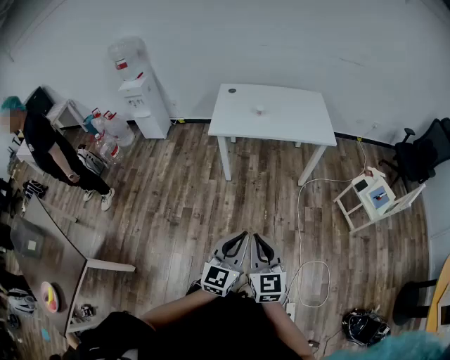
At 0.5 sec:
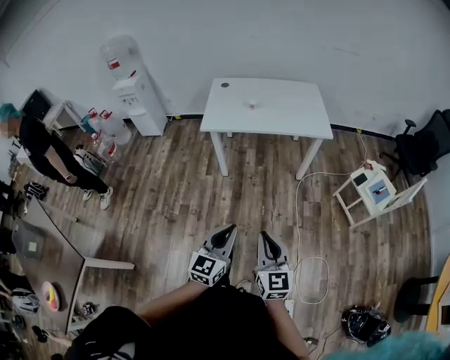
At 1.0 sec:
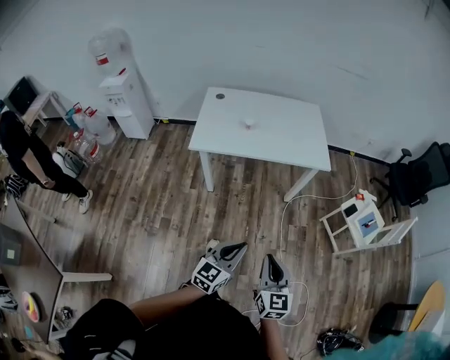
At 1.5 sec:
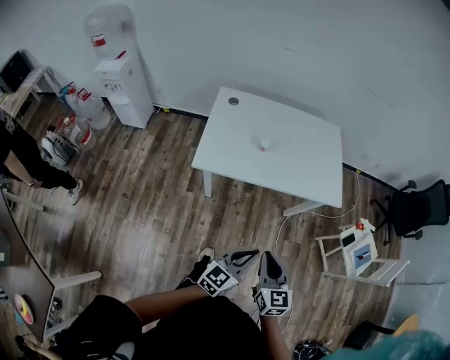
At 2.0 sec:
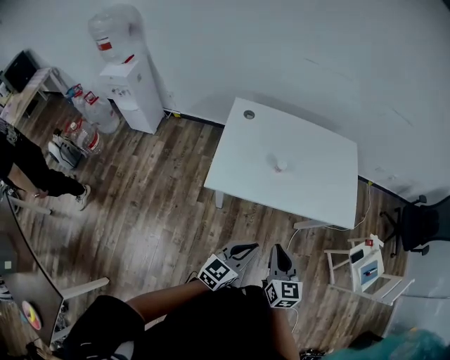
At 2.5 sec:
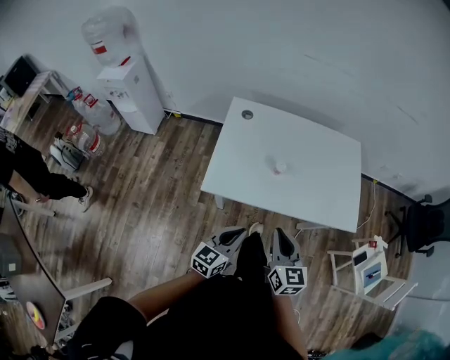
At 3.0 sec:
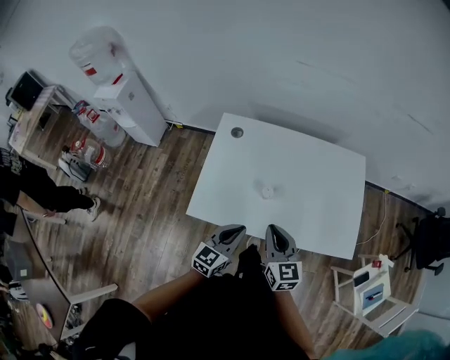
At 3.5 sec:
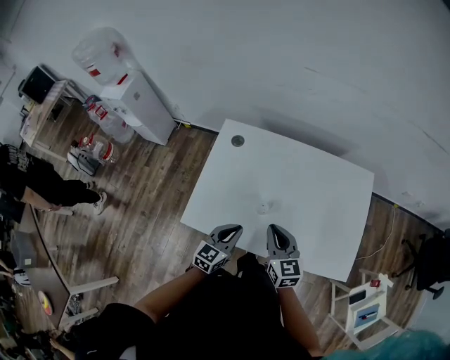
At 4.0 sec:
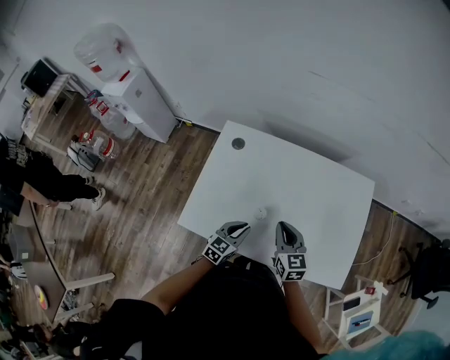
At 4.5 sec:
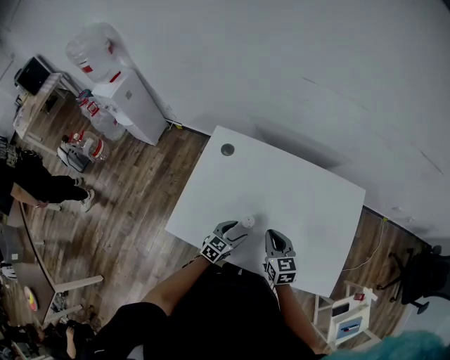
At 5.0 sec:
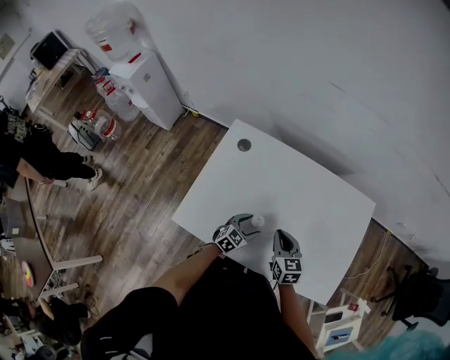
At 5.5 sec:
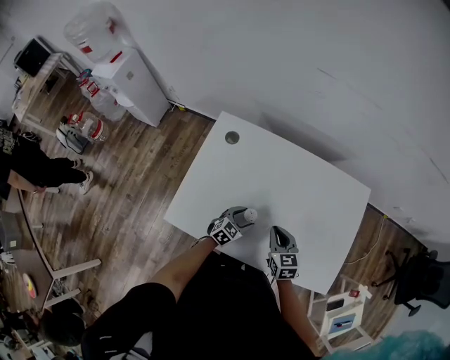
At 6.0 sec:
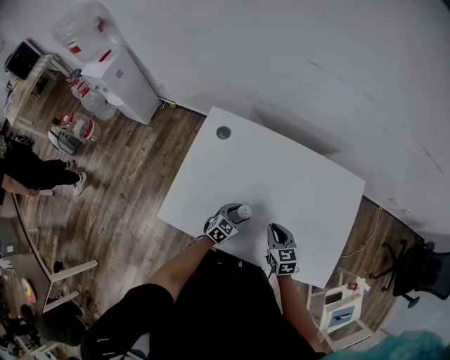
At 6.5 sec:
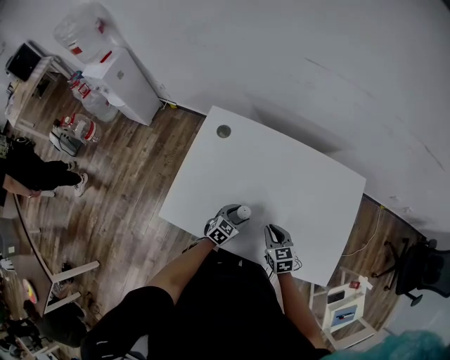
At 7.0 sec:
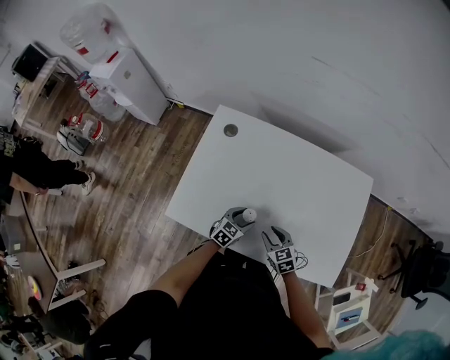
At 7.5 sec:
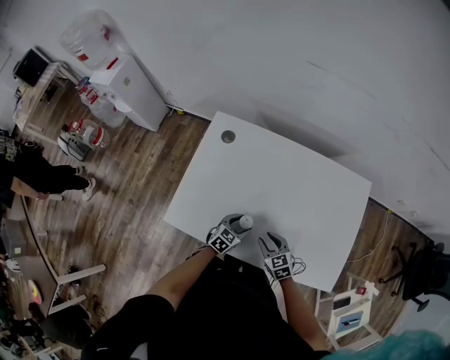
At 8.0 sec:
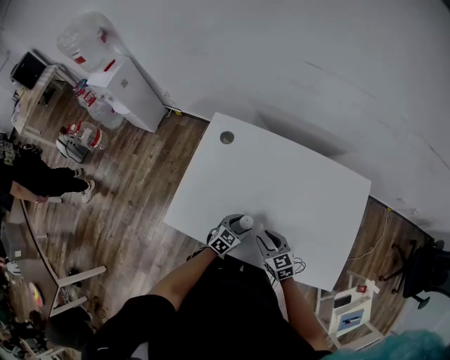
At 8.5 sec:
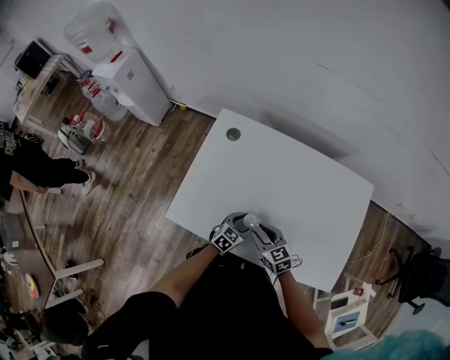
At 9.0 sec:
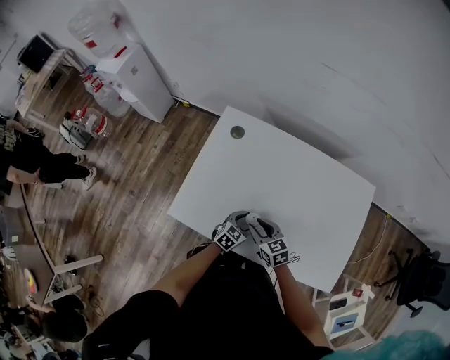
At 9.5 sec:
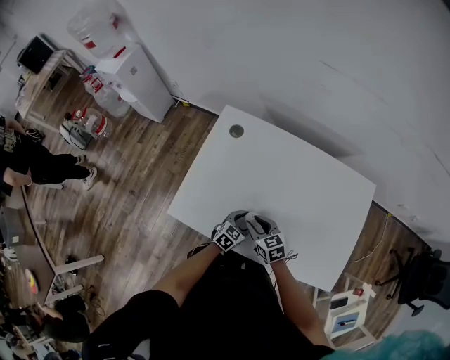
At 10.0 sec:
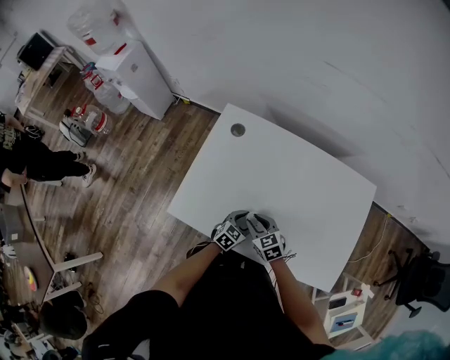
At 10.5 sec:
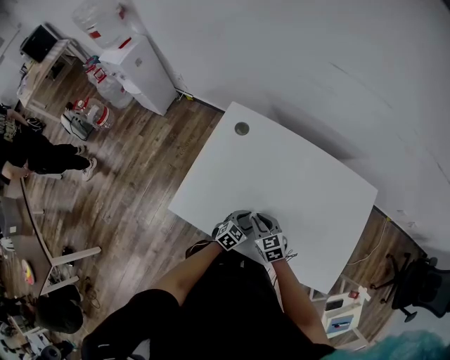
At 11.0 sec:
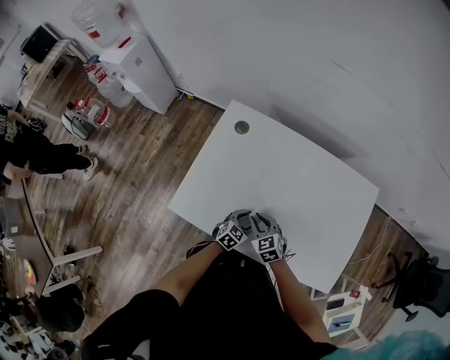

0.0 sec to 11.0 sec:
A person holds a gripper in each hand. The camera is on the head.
0.0 sec to 2.0 sec: The pair of grippers is taken forward, approximately 50 cm. The left gripper swivels approximately 20 degrees.
2.0 sec to 3.5 sec: The grippers both shift forward by about 30 cm. The left gripper rotates some 20 degrees.
3.5 sec to 5.5 sec: The right gripper shifts roughly 15 cm downward and forward. The left gripper moves downward and forward, some 20 cm, rotates about 20 degrees, and opens its fingers.
5.5 sec to 7.5 sec: The right gripper shifts roughly 10 cm downward and backward, and opens.
7.5 sec to 9.0 sec: The right gripper is displaced to the left by some 10 cm.
9.0 sec to 11.0 sec: The grippers stay close to where they were, moving slightly.

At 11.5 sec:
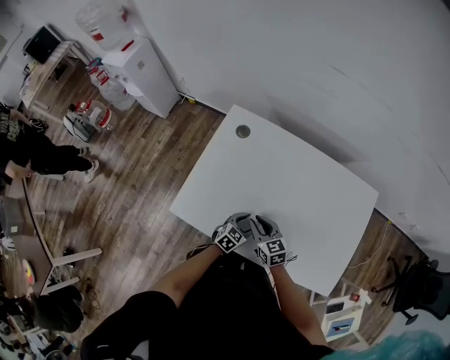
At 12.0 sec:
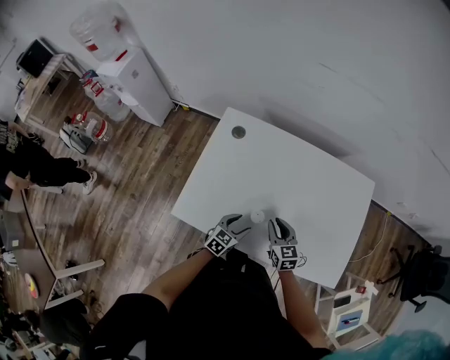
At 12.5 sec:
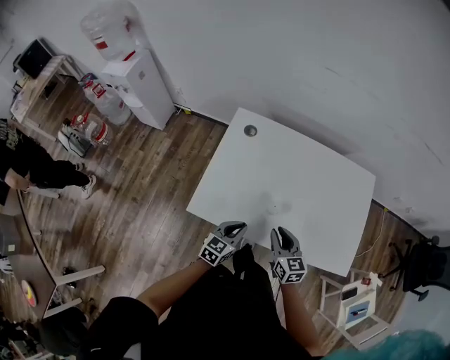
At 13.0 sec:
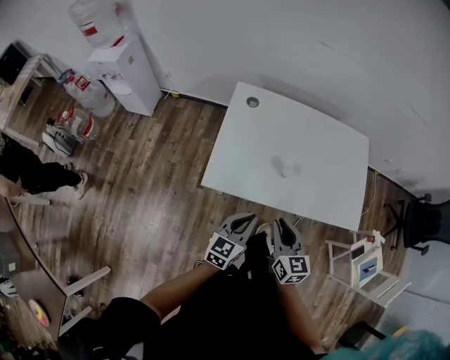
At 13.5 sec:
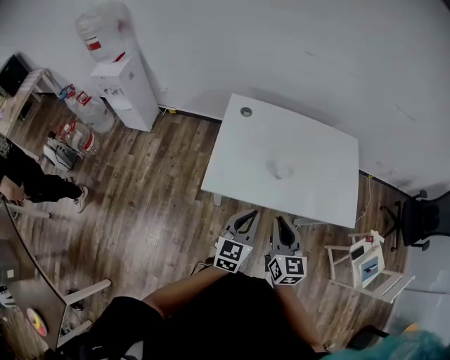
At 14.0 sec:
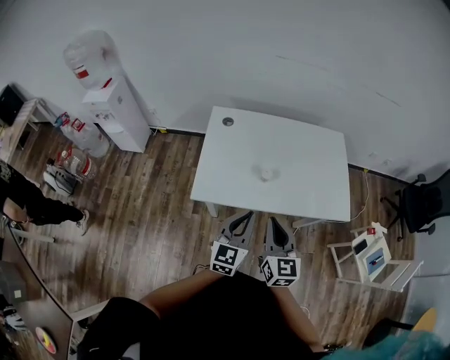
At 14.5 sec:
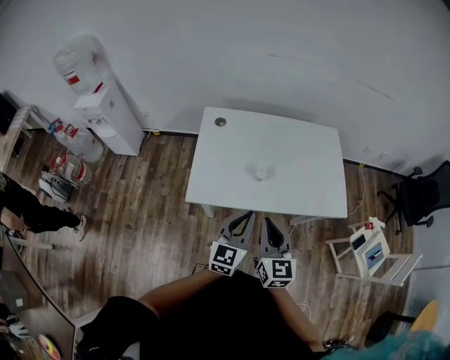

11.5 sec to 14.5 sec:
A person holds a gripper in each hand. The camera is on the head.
11.5 sec to 13.0 sec: The right gripper heads backward and upward, covering some 30 cm, and changes its angle by approximately 30 degrees, while the left gripper goes approximately 35 cm upward, backward and to the left, changes its angle by some 30 degrees, and closes up.
13.0 sec to 14.5 sec: The left gripper travels upward and to the right by some 10 cm. The right gripper heads upward, covering some 10 cm.

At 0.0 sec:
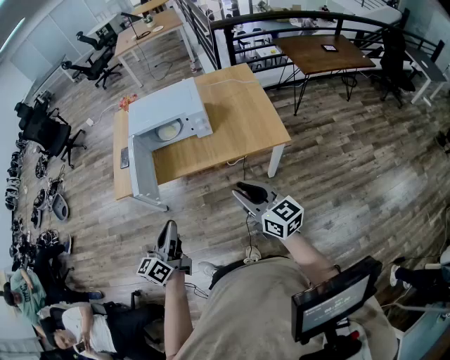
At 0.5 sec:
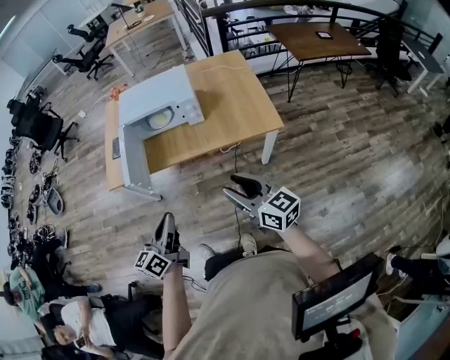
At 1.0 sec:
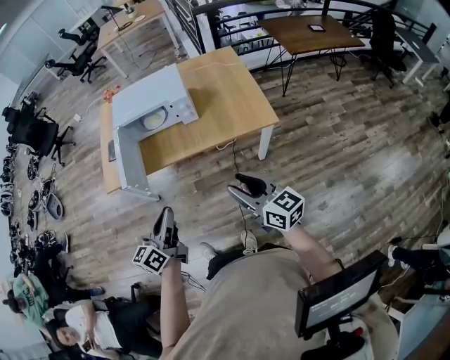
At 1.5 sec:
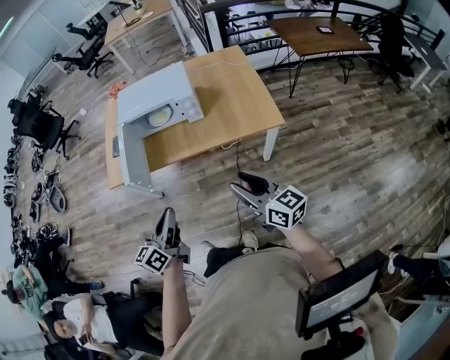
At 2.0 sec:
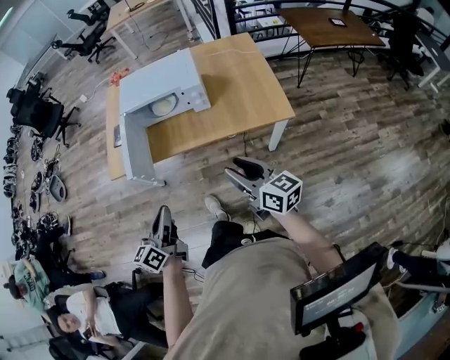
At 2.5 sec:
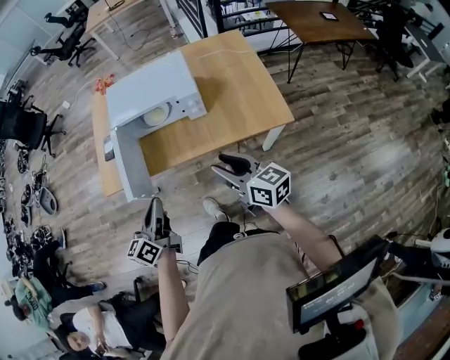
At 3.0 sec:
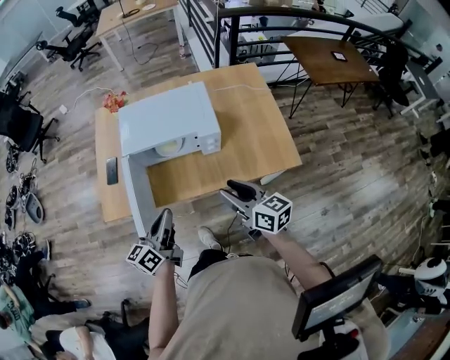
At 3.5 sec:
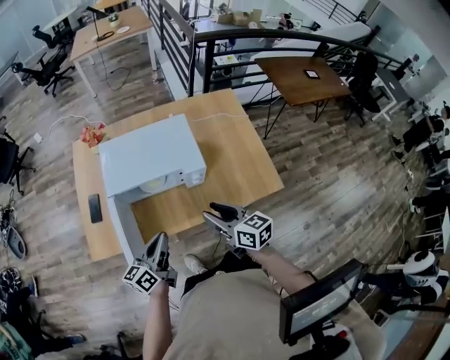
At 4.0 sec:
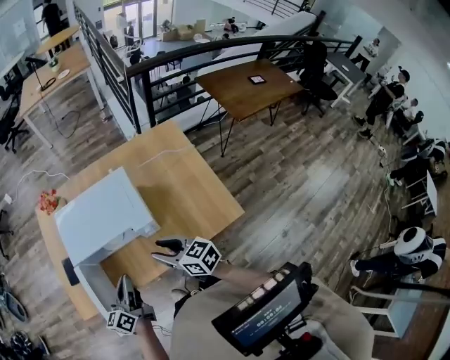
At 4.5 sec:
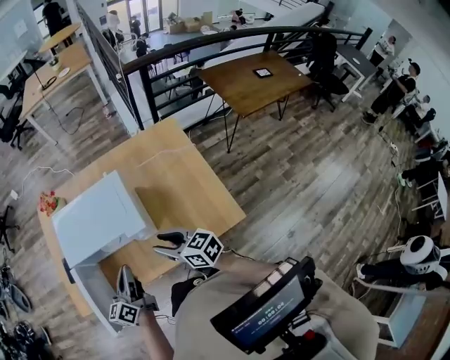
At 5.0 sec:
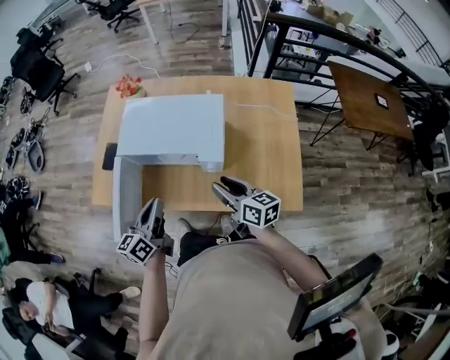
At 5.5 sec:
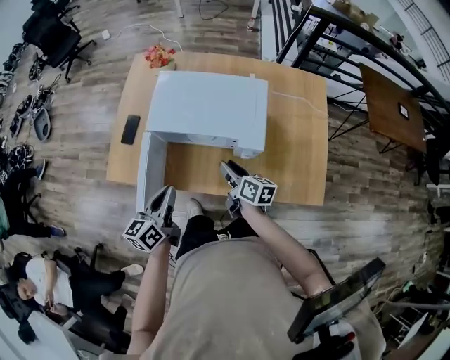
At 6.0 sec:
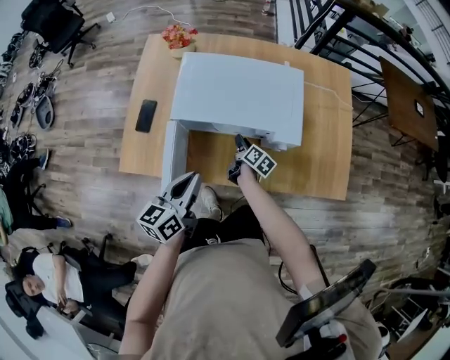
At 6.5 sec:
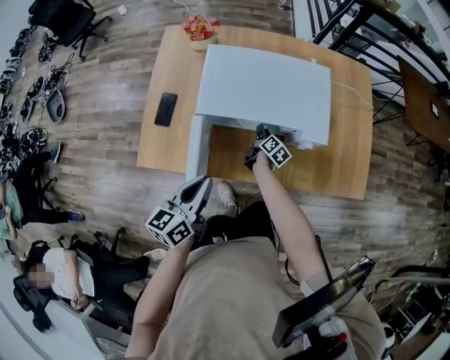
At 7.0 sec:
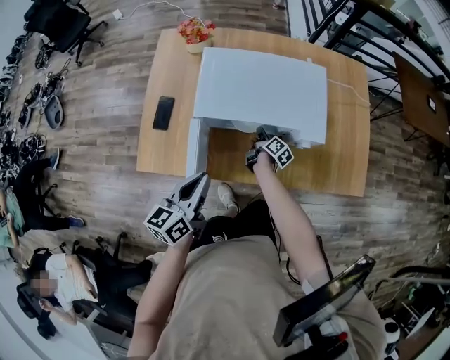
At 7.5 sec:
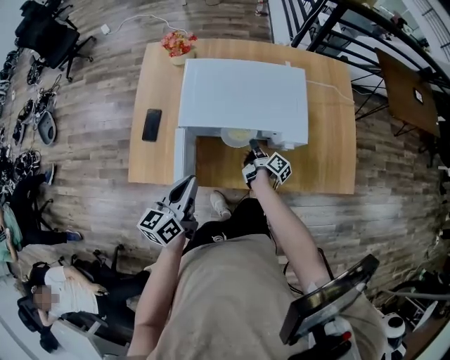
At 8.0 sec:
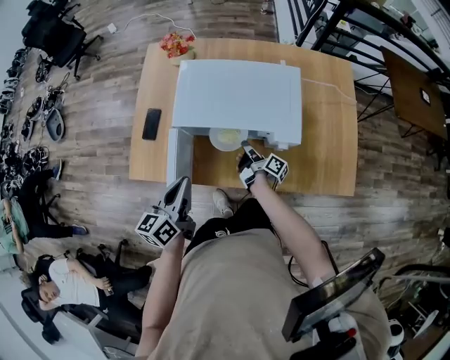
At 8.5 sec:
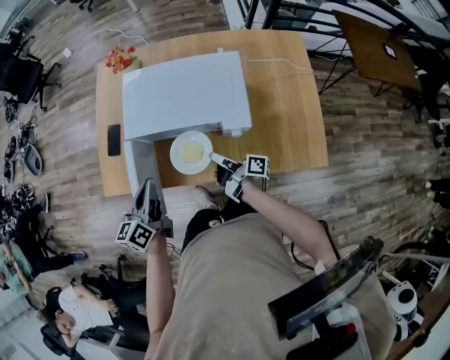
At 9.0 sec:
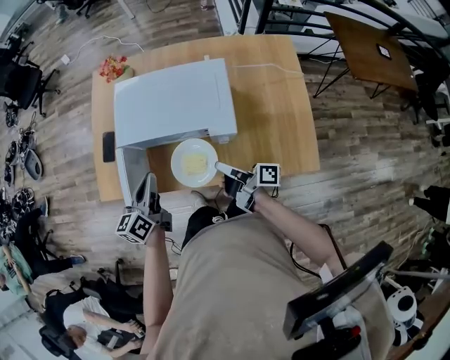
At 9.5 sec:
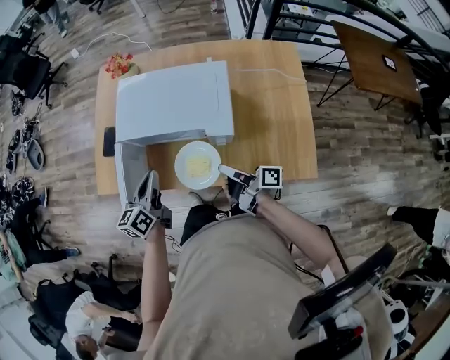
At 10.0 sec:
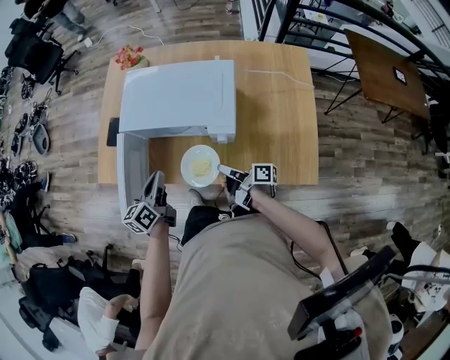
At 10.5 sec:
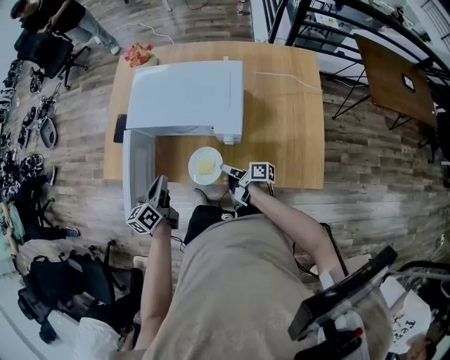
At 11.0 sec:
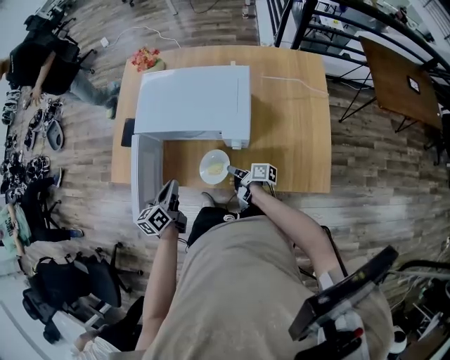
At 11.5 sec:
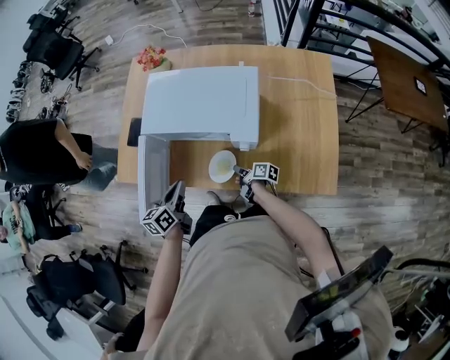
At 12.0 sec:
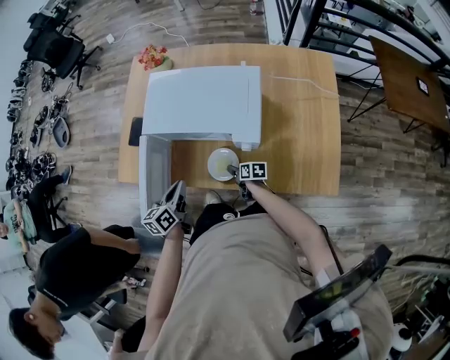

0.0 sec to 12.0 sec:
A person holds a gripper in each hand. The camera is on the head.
0.0 sec to 2.0 sec: The right gripper is displaced forward by about 5 cm.
2.0 sec to 4.0 sec: Both grippers travel together forward, roughly 35 cm.
4.0 sec to 6.0 sec: The right gripper heads downward and forward, covering some 35 cm, and rotates around the line of its fingers by roughly 40 degrees, clockwise from behind. Meanwhile the left gripper travels to the left by approximately 10 cm.
6.0 sec to 8.0 sec: The right gripper turns by roughly 30 degrees.
8.0 sec to 10.0 sec: The right gripper travels backward, to the right and upward by roughly 20 cm, and rotates roughly 30 degrees. Meanwhile the left gripper heads to the right, covering approximately 10 cm.
10.0 sec to 12.0 sec: The right gripper shifts roughly 20 cm downward, tips its fingers downward by roughly 40 degrees, and opens. The left gripper ends up about 5 cm from where it was.
